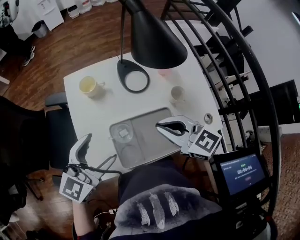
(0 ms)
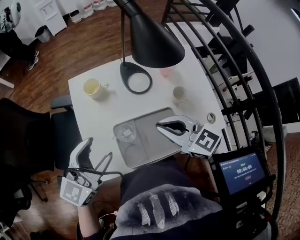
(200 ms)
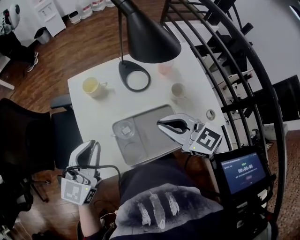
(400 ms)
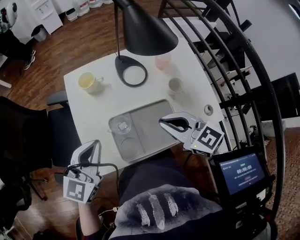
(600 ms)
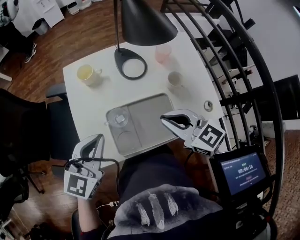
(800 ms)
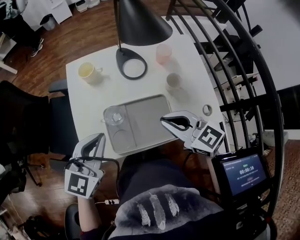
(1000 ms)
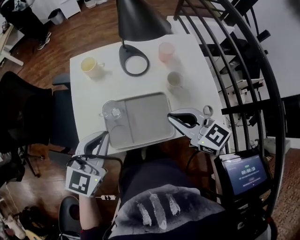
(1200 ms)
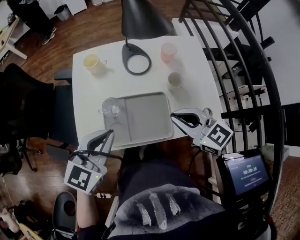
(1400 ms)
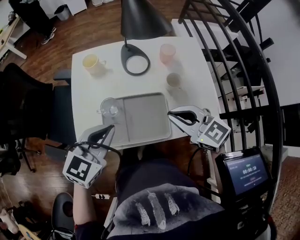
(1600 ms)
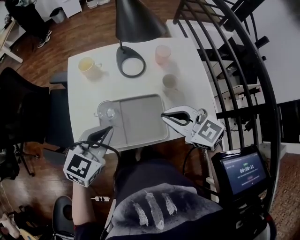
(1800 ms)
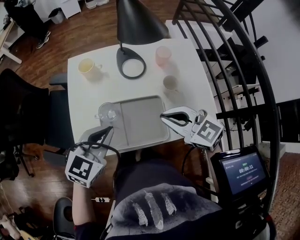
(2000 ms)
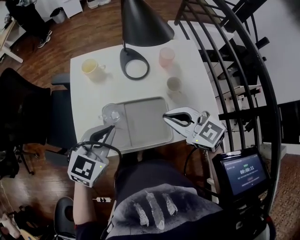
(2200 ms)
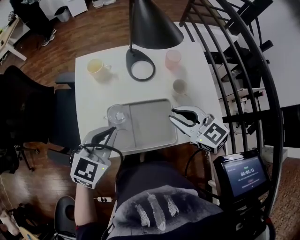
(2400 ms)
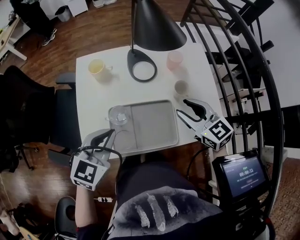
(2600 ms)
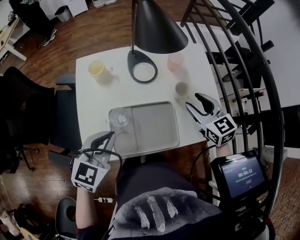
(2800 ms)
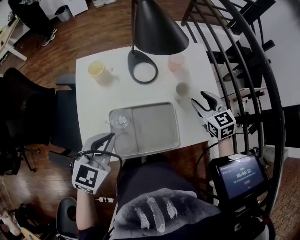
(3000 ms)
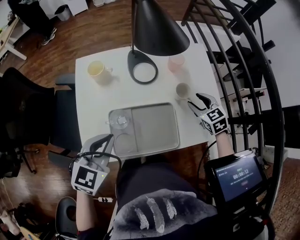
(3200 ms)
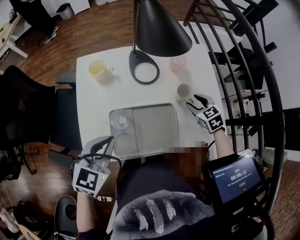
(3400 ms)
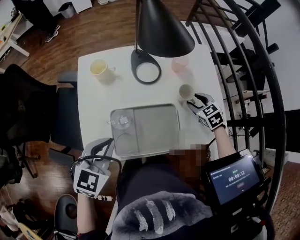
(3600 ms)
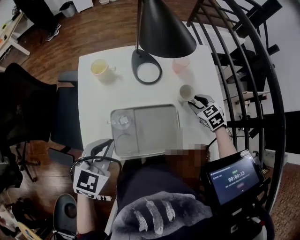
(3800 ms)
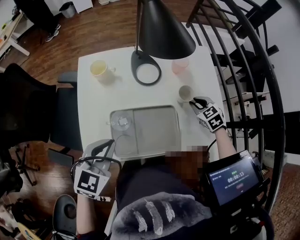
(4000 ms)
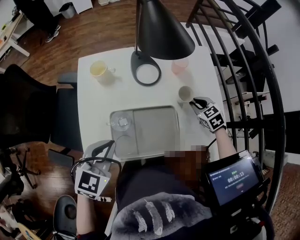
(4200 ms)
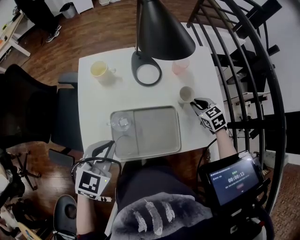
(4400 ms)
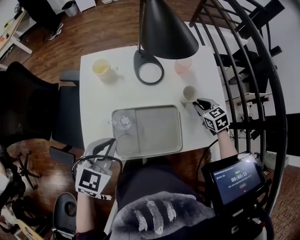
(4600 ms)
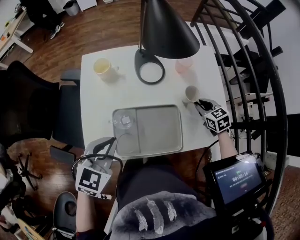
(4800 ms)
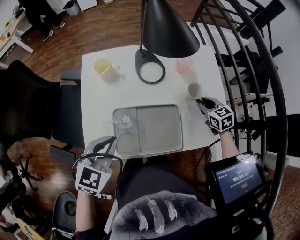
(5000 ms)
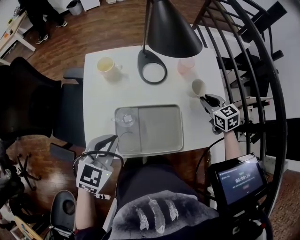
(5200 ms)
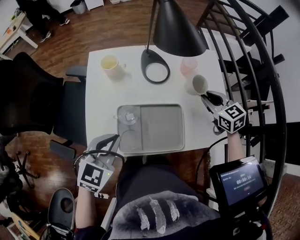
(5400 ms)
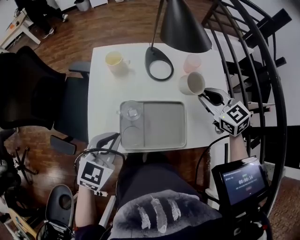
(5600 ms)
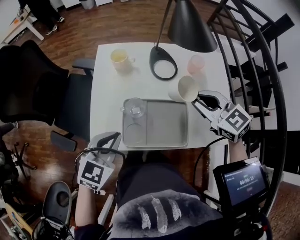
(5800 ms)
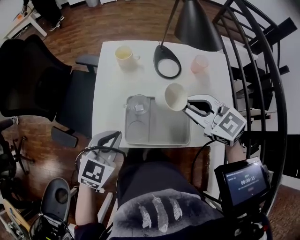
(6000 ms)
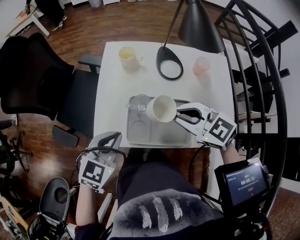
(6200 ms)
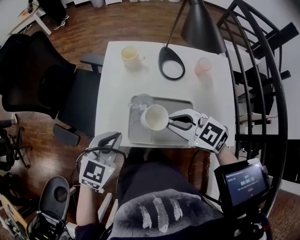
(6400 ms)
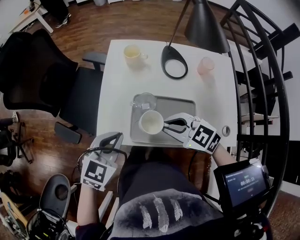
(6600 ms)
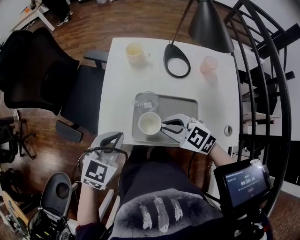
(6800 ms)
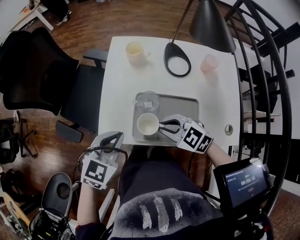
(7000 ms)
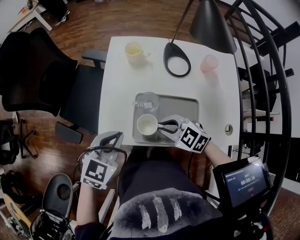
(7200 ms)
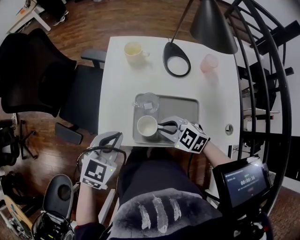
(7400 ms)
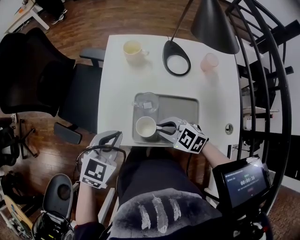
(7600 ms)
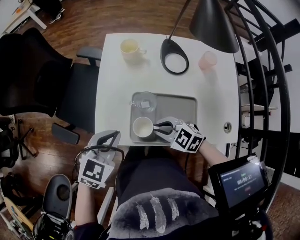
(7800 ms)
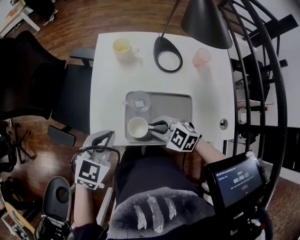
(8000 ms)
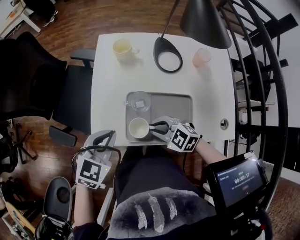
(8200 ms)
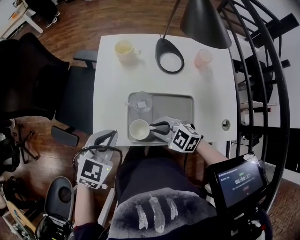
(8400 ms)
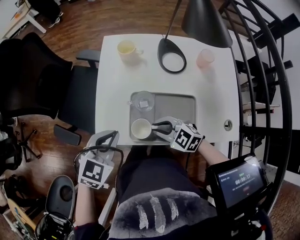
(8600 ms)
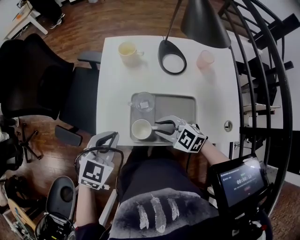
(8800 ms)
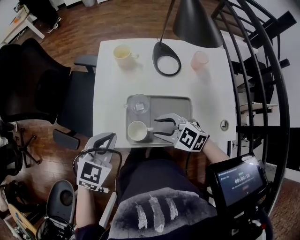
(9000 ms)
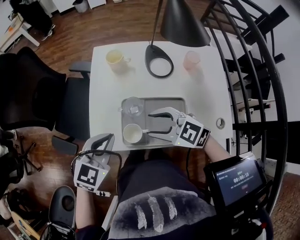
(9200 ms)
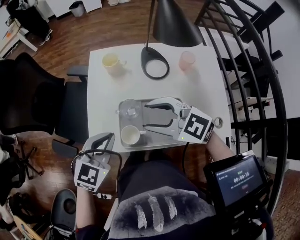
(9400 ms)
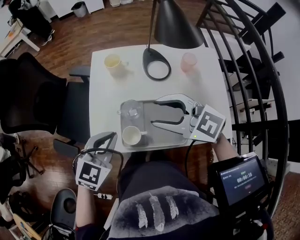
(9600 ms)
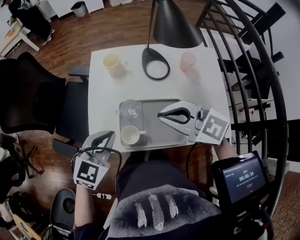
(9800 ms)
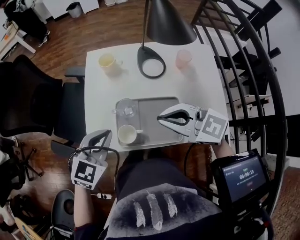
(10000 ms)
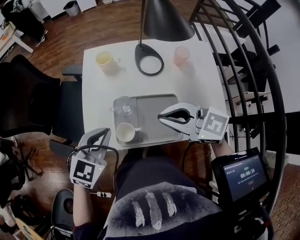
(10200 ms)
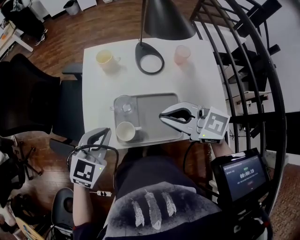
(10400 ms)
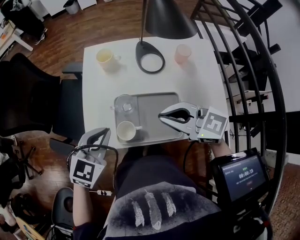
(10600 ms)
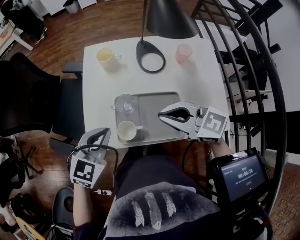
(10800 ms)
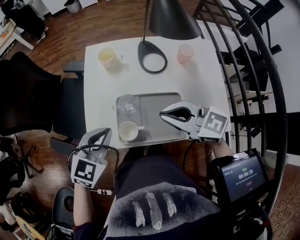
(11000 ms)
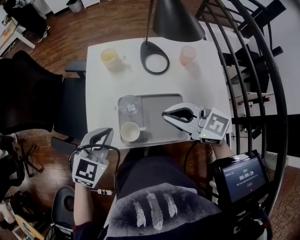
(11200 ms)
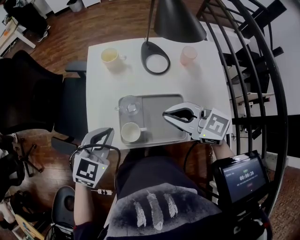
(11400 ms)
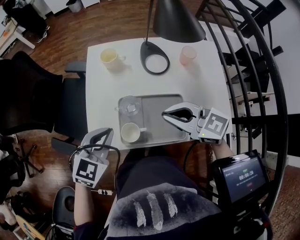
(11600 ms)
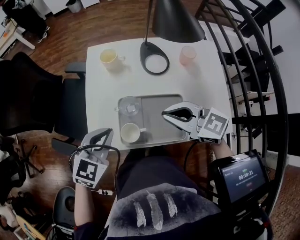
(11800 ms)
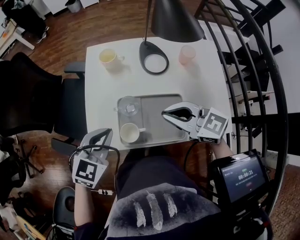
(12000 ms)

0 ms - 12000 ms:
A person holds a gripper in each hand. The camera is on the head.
0 ms - 1600 ms: The two grippers go about 10 cm to the right and backward. The left gripper closes.
1600 ms - 3000 ms: The right gripper goes about 15 cm to the right, forward and downward, turns by about 30 degrees, and opens up.
3000 ms - 4400 ms: The right gripper moves downward, roughly 10 cm, and closes its fingers.
4400 ms - 6000 ms: The left gripper ends up about 5 cm from where it was, while the right gripper goes roughly 30 cm to the left and upward, and swivels some 40 degrees.
6000 ms - 7600 ms: The right gripper heads downward and to the left, covering roughly 20 cm, and swivels about 20 degrees.
7600 ms - 9000 ms: The right gripper opens its fingers.
9000 ms - 10400 ms: The right gripper is displaced upward and to the right by some 15 cm, swivels some 30 degrees, and closes.
10400 ms - 12000 ms: The grippers move only a little.

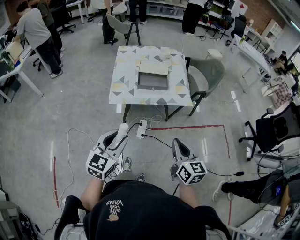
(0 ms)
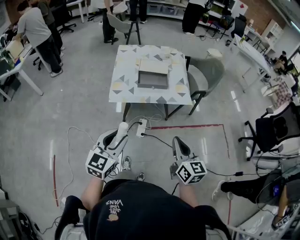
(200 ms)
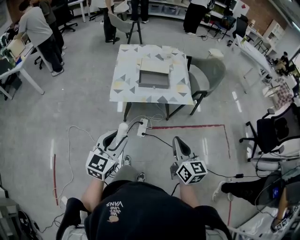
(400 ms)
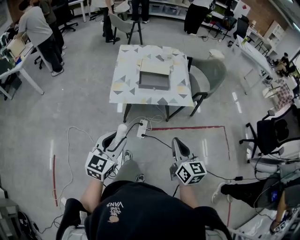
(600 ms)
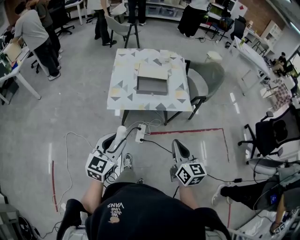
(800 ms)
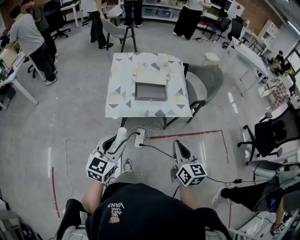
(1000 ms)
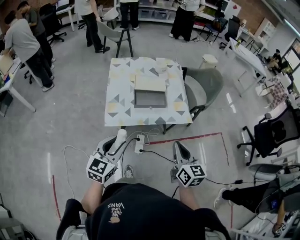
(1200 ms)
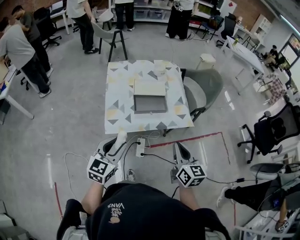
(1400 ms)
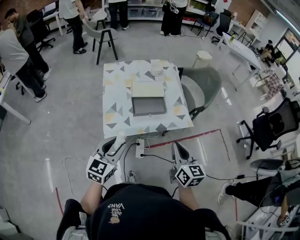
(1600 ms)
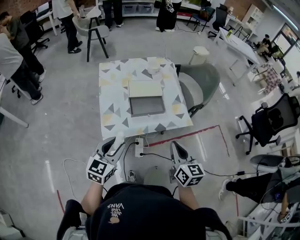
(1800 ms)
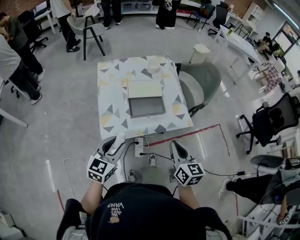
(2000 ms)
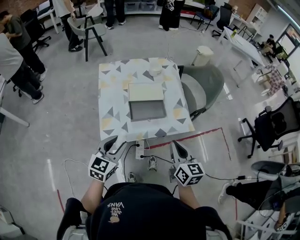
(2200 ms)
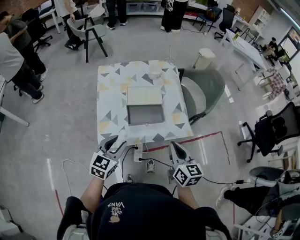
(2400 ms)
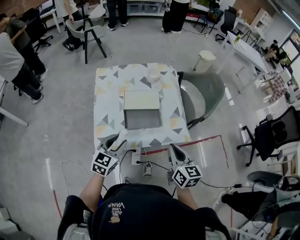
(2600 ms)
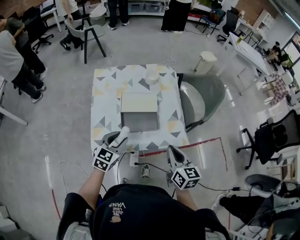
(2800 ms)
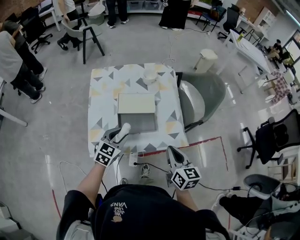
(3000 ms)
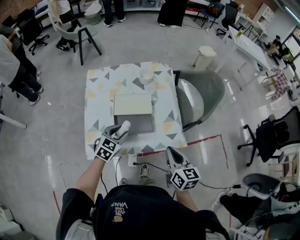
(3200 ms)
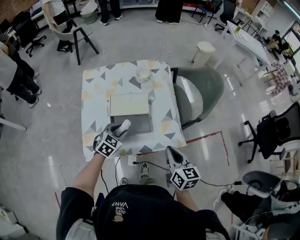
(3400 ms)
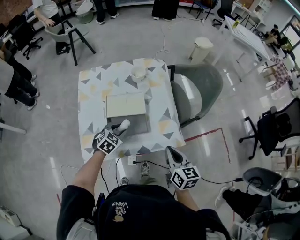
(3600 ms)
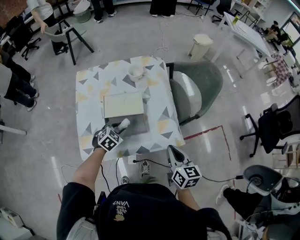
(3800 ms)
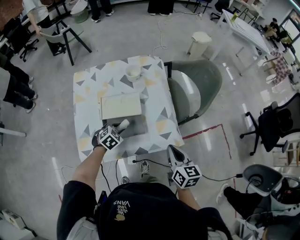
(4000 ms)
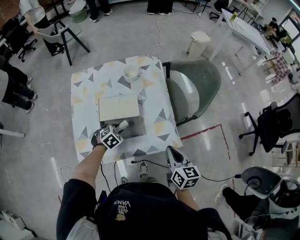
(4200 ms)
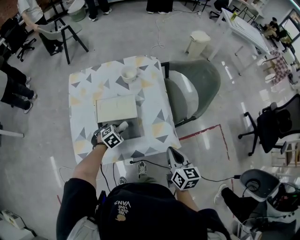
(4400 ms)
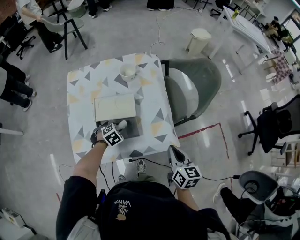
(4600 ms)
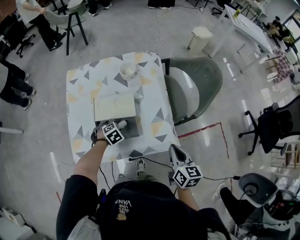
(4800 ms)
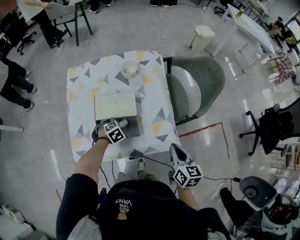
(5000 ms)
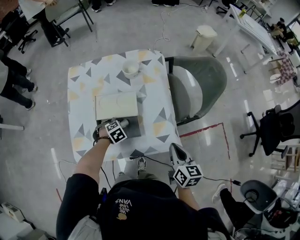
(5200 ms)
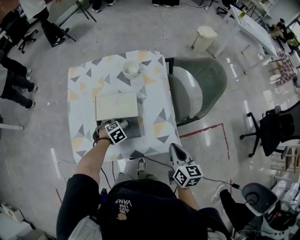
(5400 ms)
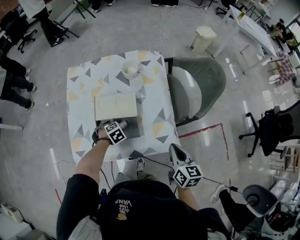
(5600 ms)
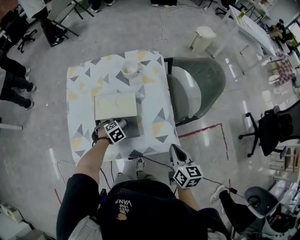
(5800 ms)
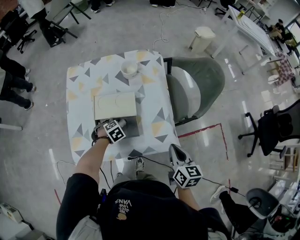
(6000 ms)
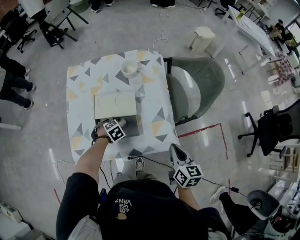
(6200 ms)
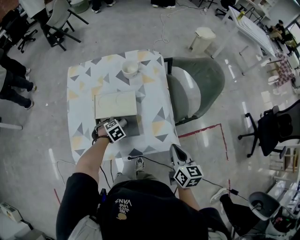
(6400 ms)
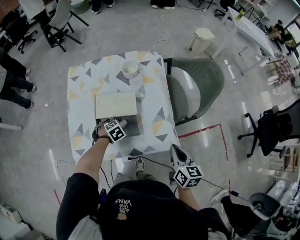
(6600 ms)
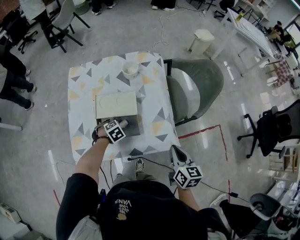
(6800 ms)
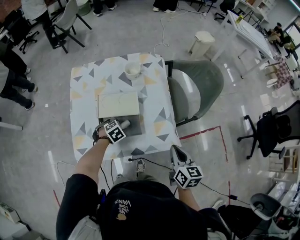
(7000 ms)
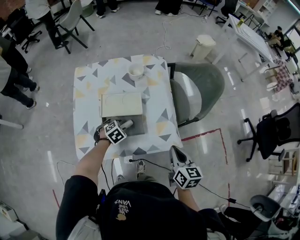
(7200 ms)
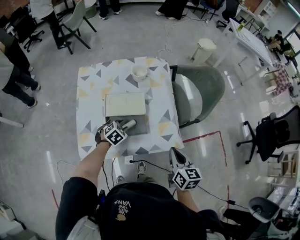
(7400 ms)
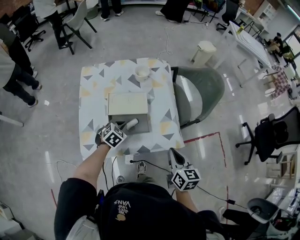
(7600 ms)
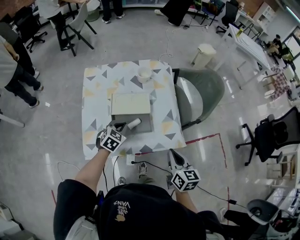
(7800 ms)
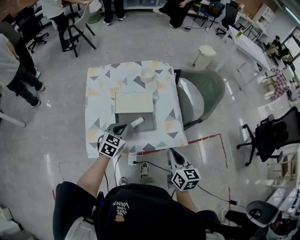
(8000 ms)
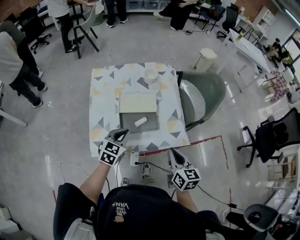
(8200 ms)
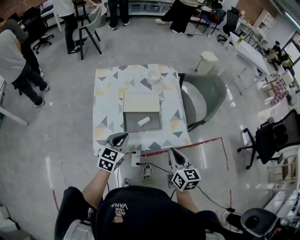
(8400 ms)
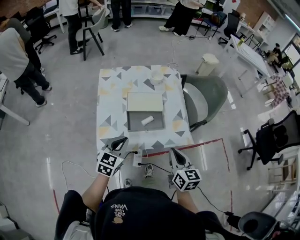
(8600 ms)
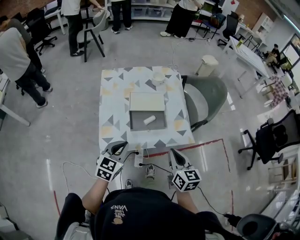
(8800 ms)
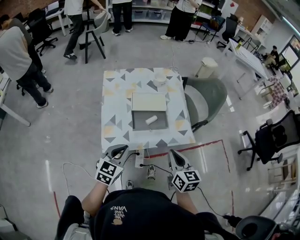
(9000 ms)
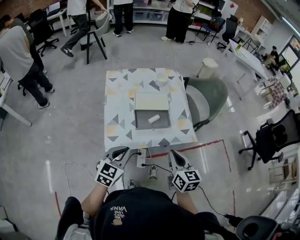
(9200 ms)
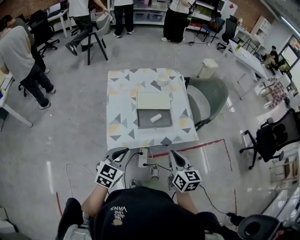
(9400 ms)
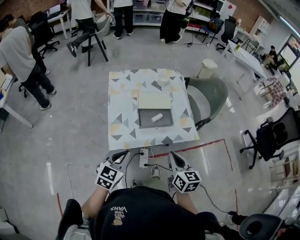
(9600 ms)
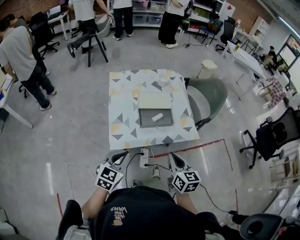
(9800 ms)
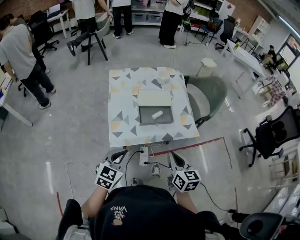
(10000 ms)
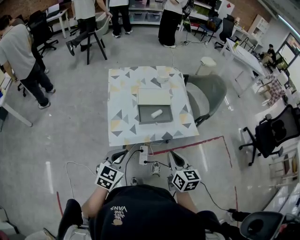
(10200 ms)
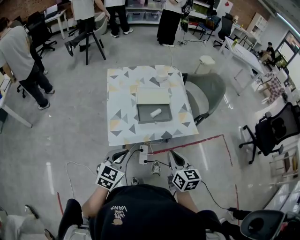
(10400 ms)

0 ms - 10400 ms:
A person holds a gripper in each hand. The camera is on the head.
0 ms - 1400 ms: The grippers both shift forward by some 20 cm.
1400 ms - 3000 ms: The right gripper travels forward by some 20 cm. Meanwhile the left gripper goes about 30 cm forward and downward.
3000 ms - 4400 ms: The right gripper heads to the right, forward and downward, covering some 15 cm. The left gripper travels downward and forward by roughly 20 cm, and points its fingers roughly 40 degrees further downward.
4400 ms - 6000 ms: The left gripper goes roughly 5 cm downward.
6000 ms - 7400 ms: The left gripper heads upward, covering about 10 cm, and rotates about 20 degrees. The right gripper ends up approximately 5 cm from where it was.
7400 ms - 9000 ms: The left gripper heads backward and upward, covering about 30 cm, points its fingers roughly 40 degrees further upward, and closes; the right gripper heads backward, to the left and upward, covering roughly 20 cm.
9000 ms - 10400 ms: Both grippers move backward, roughly 10 cm.

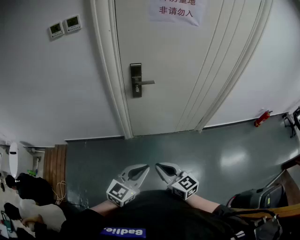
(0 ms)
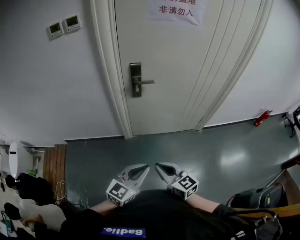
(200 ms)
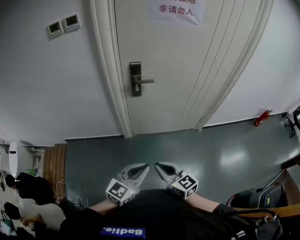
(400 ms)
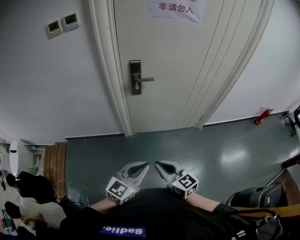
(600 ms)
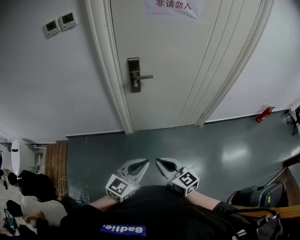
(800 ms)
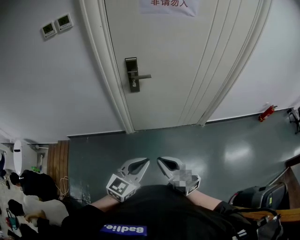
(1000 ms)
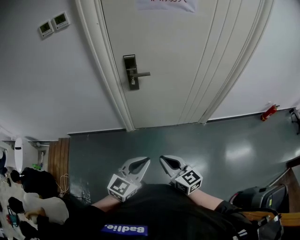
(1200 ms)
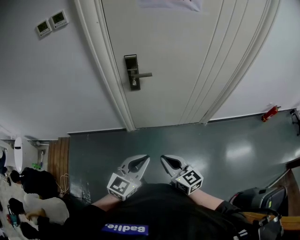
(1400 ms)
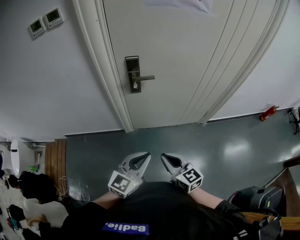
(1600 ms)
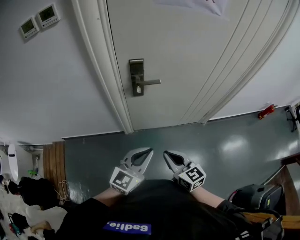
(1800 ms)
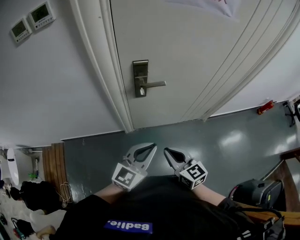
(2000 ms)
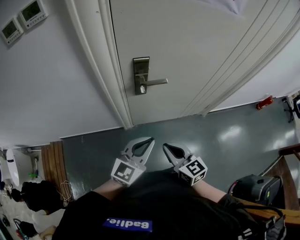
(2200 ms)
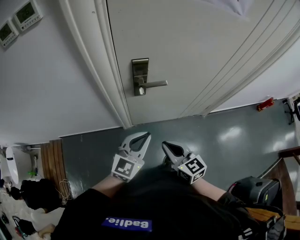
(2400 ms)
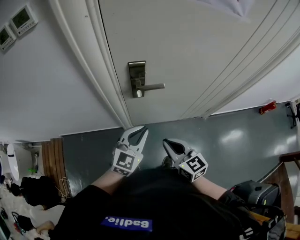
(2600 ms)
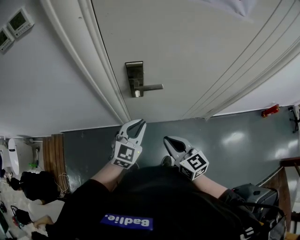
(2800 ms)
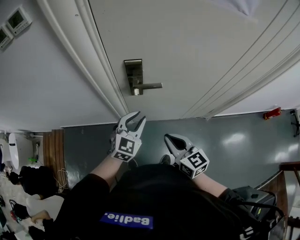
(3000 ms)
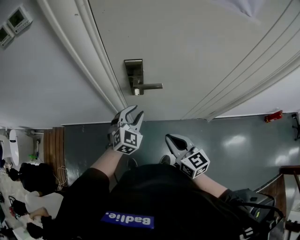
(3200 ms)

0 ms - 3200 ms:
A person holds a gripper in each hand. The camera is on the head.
0 ms - 1600 ms: The grippers both shift forward by some 10 cm.
1600 ms - 3200 ms: The left gripper travels forward by approximately 35 cm, swivels roughly 40 degrees, and opens its fingers. The right gripper moves forward, about 20 cm.
